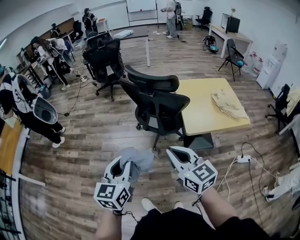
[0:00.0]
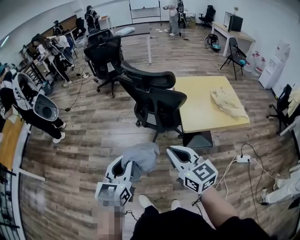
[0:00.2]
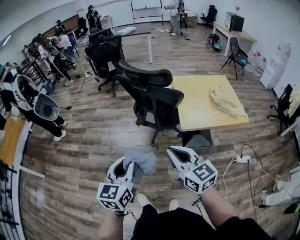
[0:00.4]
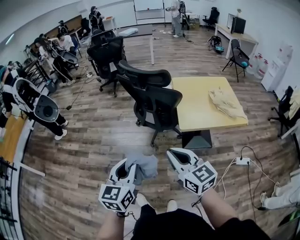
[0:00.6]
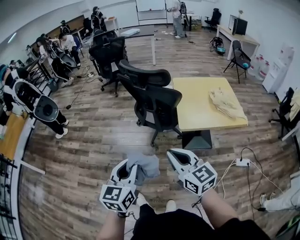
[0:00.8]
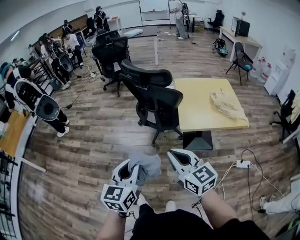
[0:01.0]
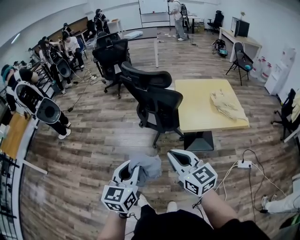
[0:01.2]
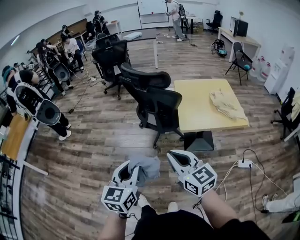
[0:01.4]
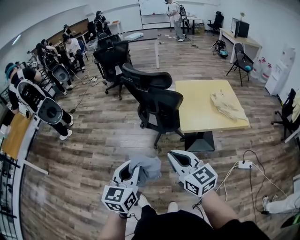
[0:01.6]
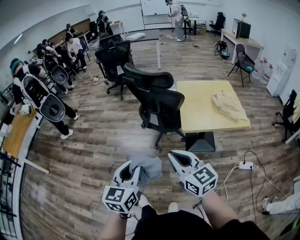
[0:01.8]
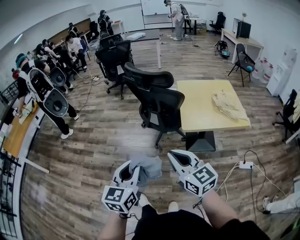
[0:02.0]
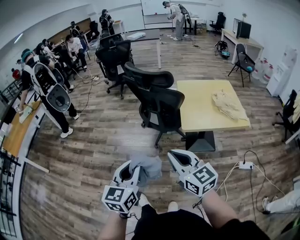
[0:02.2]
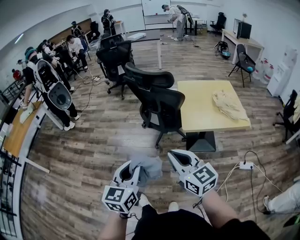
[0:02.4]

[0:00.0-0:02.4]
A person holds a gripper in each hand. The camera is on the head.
0.0 to 1.2 s: Both grippers move backward and to the right, approximately 15 cm.
1.2 to 2.4 s: There are only small adjustments of the grippers.

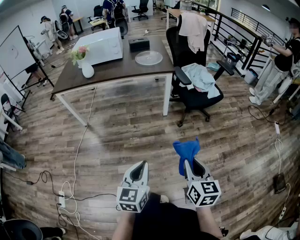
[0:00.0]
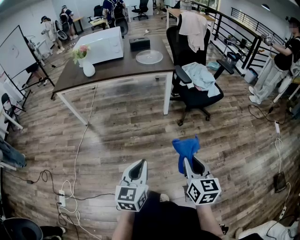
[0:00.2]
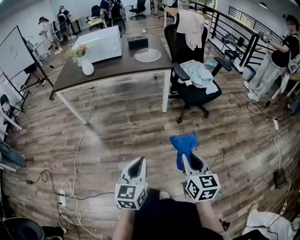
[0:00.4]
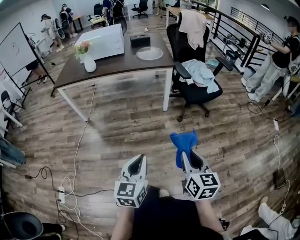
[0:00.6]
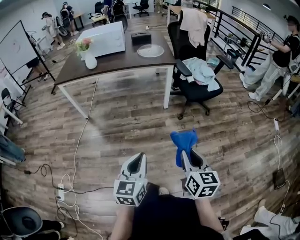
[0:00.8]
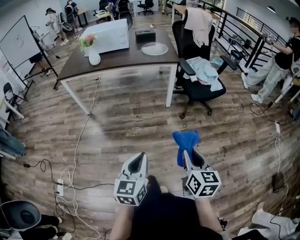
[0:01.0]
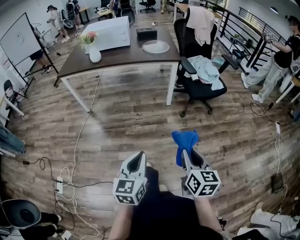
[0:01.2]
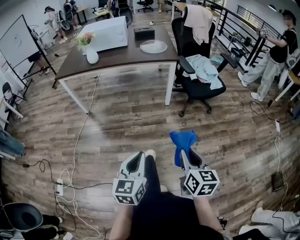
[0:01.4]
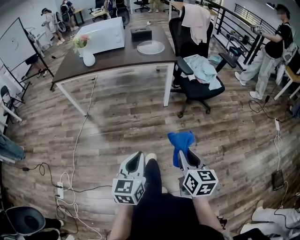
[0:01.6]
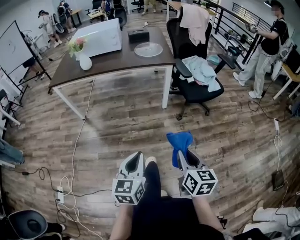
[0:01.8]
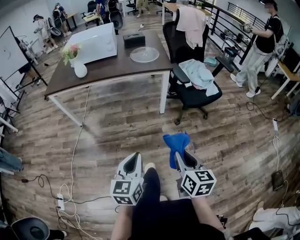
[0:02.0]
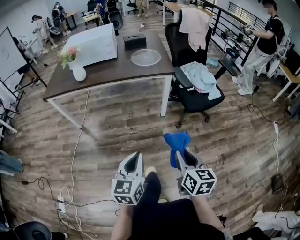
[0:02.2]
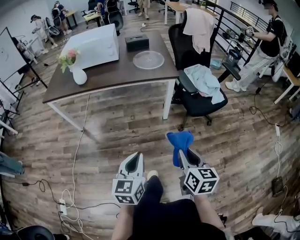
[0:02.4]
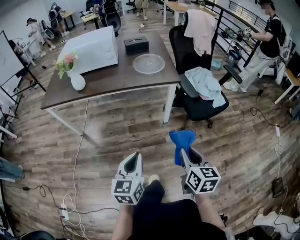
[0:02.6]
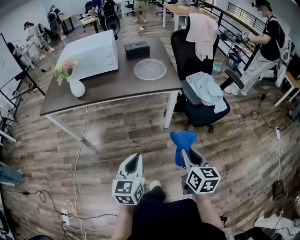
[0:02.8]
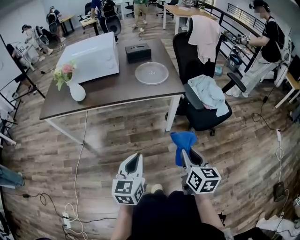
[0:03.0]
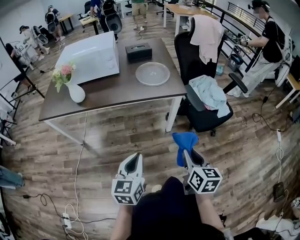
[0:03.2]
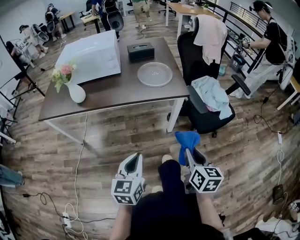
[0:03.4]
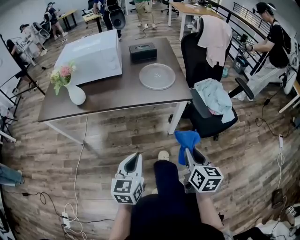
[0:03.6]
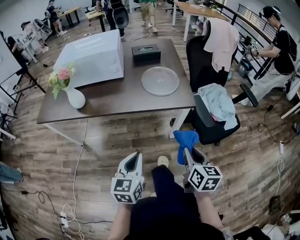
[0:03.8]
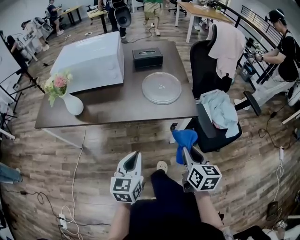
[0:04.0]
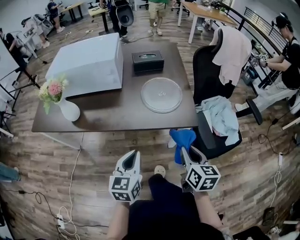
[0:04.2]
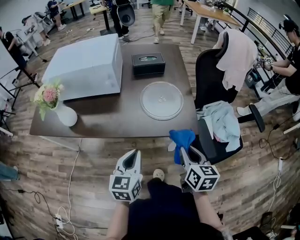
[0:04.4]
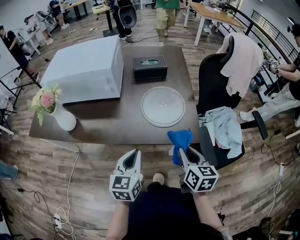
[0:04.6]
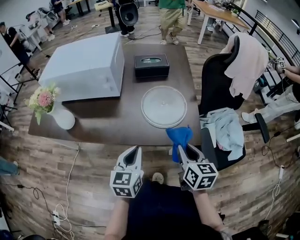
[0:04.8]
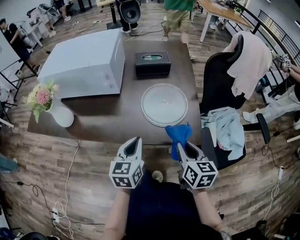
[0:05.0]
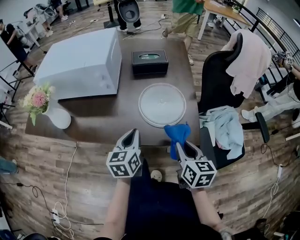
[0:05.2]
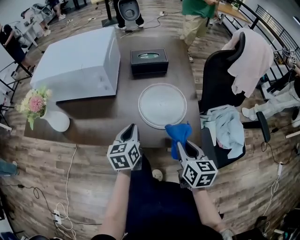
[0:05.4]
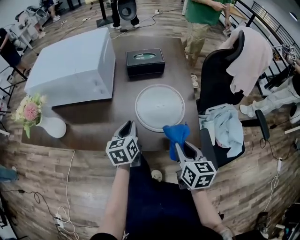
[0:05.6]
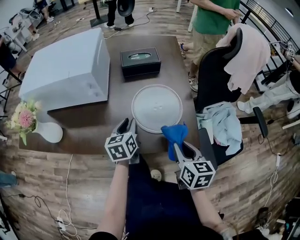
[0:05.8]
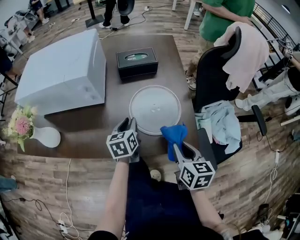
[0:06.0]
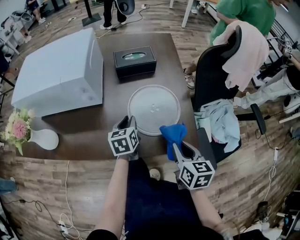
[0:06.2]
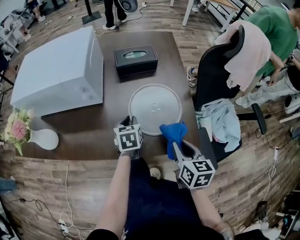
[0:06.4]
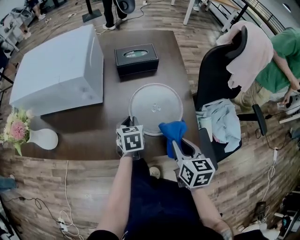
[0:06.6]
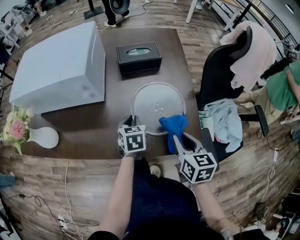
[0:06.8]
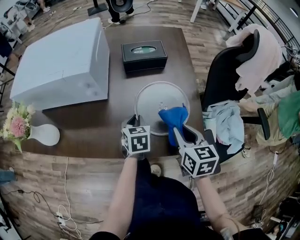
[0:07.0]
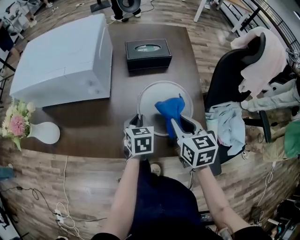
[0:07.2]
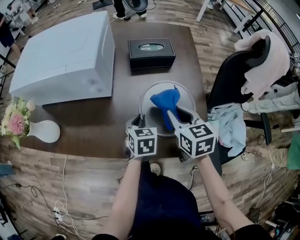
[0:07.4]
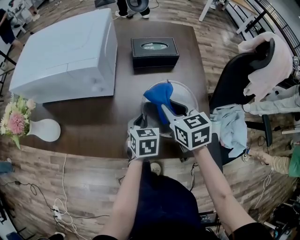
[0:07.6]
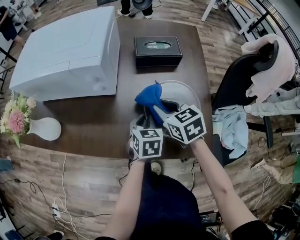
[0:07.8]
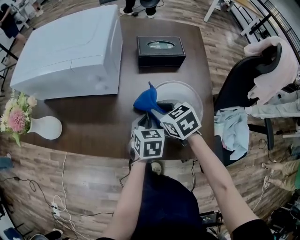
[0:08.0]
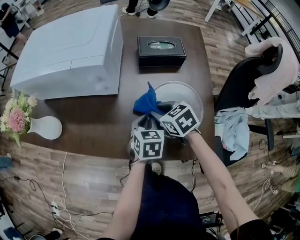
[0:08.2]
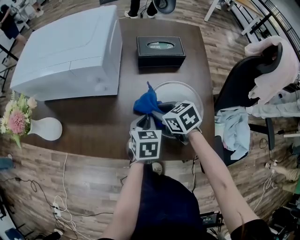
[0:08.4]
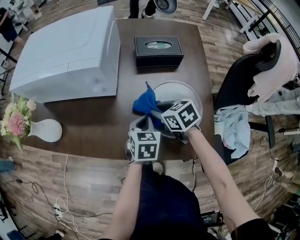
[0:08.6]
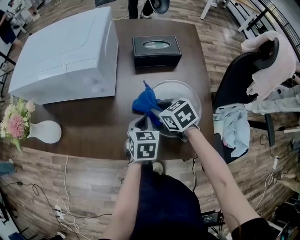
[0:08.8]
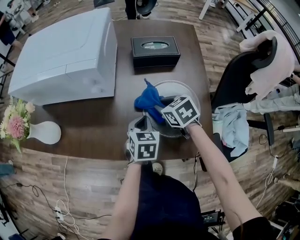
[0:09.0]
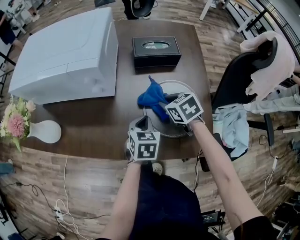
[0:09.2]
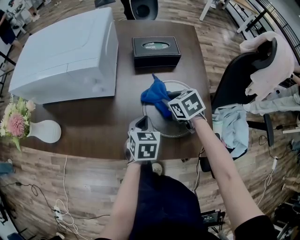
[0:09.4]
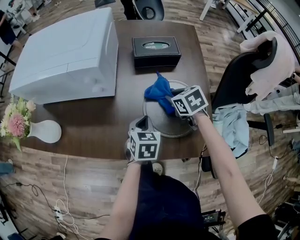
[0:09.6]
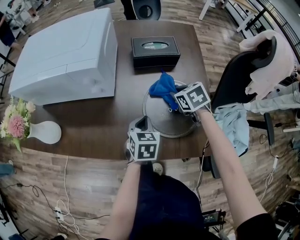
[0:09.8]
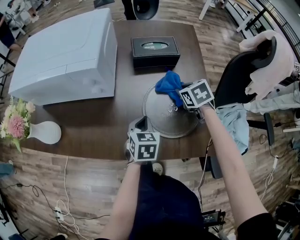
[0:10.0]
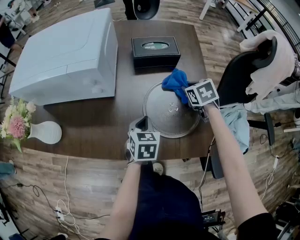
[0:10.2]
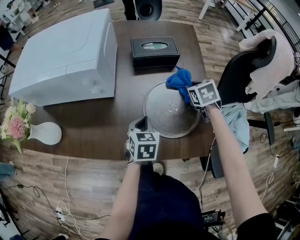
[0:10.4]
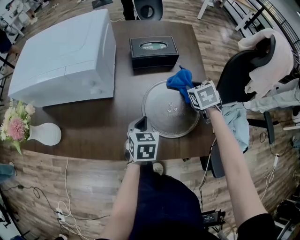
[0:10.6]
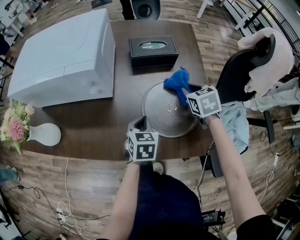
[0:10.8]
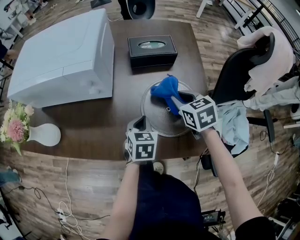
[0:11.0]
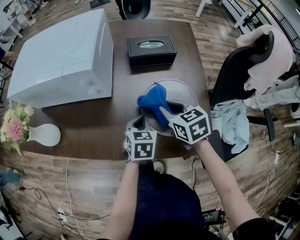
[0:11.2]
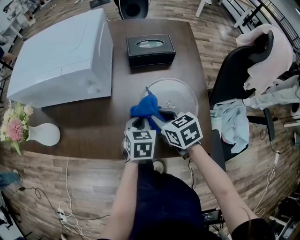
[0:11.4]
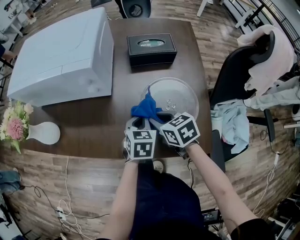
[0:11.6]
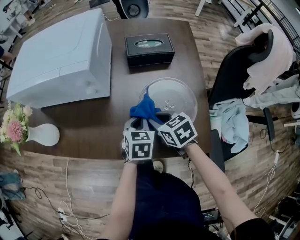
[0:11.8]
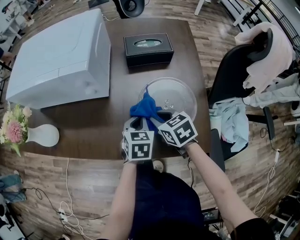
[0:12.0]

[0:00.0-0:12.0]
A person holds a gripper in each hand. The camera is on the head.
0.0 to 1.6 s: The grippers stay close to where they were, moving slightly.
1.6 to 3.0 s: The two grippers go some 35 cm forward.
3.0 to 4.4 s: Both grippers travel together forward, about 35 cm.
4.4 to 6.0 s: The left gripper heads forward and downward, covering roughly 30 cm, and opens. Meanwhile the right gripper moves forward, some 15 cm.
6.0 to 7.6 s: The right gripper is displaced forward and to the left by some 20 cm, and changes its angle by roughly 30 degrees. The left gripper swivels approximately 20 degrees.
7.6 to 9.0 s: The right gripper is displaced downward by approximately 10 cm, and turns by some 20 degrees.
9.0 to 10.4 s: The right gripper is displaced to the right by some 15 cm, and rotates about 20 degrees.
10.4 to 12.0 s: The right gripper shifts roughly 20 cm to the left and backward, and rotates about 20 degrees.

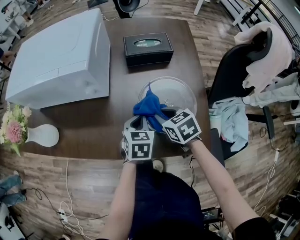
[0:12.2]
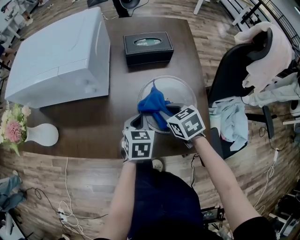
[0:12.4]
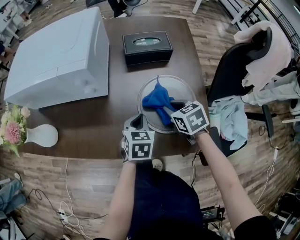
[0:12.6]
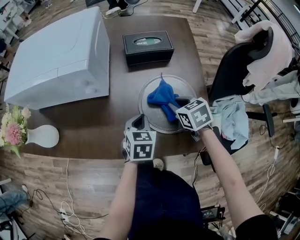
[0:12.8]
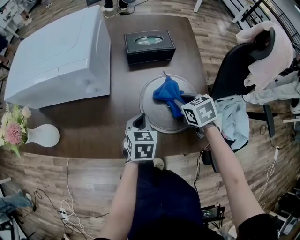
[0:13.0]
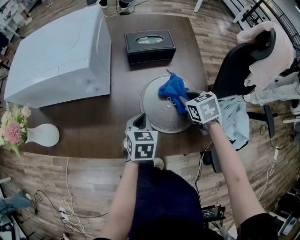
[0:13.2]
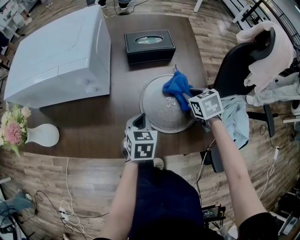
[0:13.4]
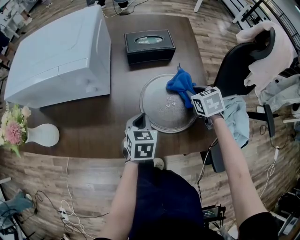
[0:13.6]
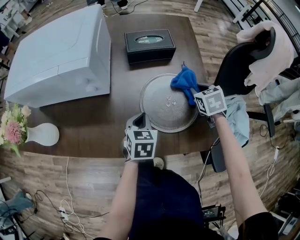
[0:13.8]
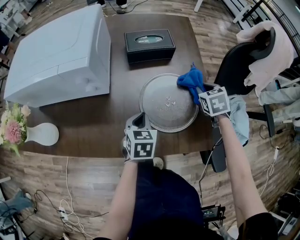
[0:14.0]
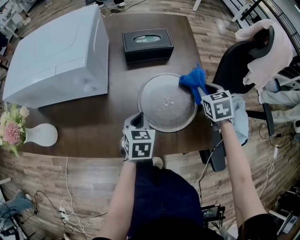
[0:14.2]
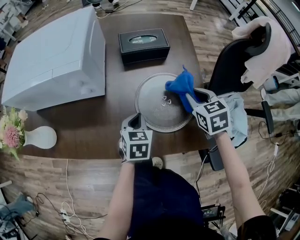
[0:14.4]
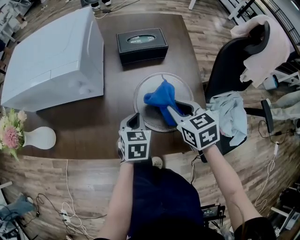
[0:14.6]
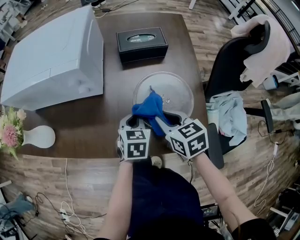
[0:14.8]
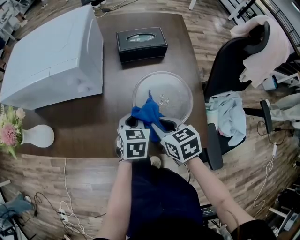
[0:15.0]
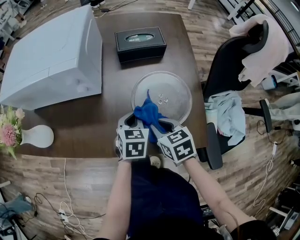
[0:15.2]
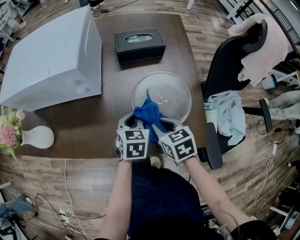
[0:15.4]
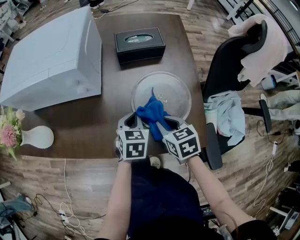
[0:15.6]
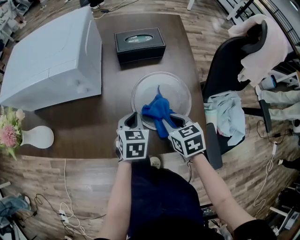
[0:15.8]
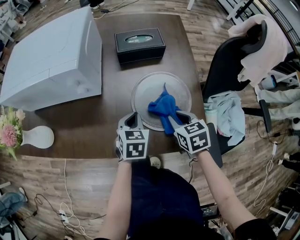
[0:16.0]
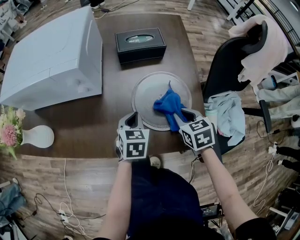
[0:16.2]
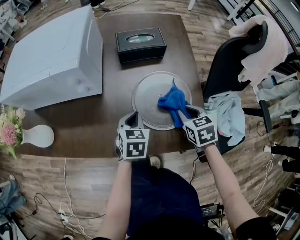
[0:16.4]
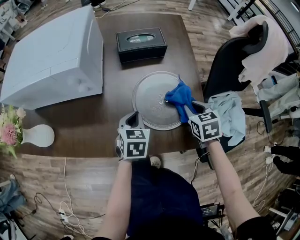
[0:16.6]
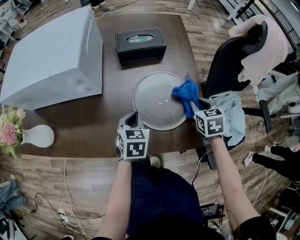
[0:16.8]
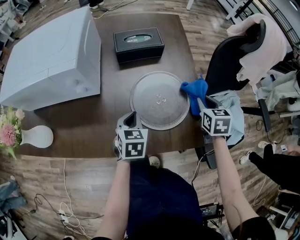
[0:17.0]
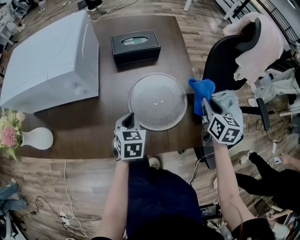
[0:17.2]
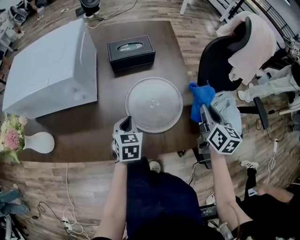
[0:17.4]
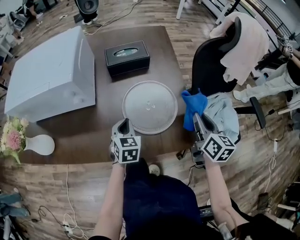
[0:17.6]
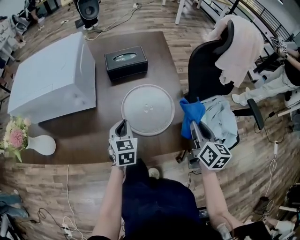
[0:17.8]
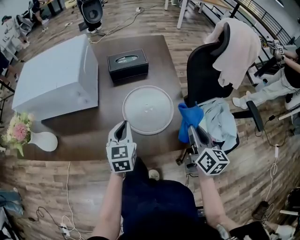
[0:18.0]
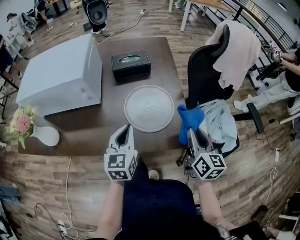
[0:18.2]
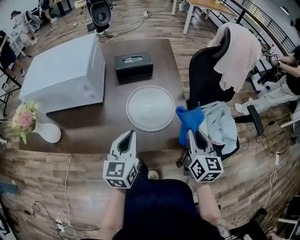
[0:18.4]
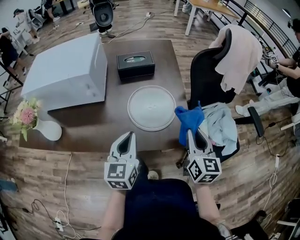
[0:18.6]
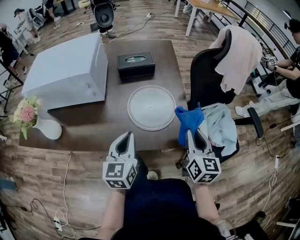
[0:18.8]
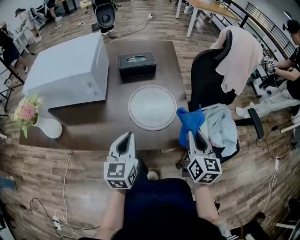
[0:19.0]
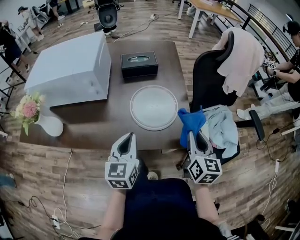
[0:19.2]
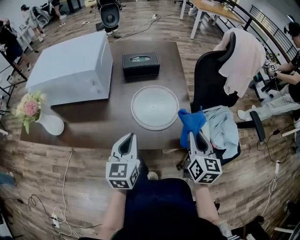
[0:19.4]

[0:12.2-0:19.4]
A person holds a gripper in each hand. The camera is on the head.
12.2 to 13.6 s: The right gripper travels to the right by some 15 cm.
13.6 to 15.0 s: The right gripper is displaced to the left and backward by approximately 20 cm, and turns by some 20 degrees.
15.0 to 16.6 s: The right gripper moves to the right, approximately 15 cm, and turns by some 20 degrees.
16.6 to 18.0 s: The left gripper is displaced upward by approximately 10 cm, and swivels some 20 degrees, while the right gripper heads upward, backward and to the right, covering approximately 15 cm, and tips its fingers upward by some 30 degrees.
18.0 to 19.4 s: The left gripper travels backward by roughly 10 cm.

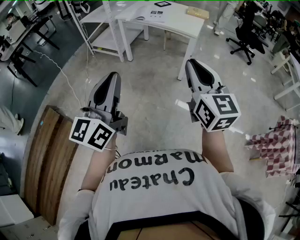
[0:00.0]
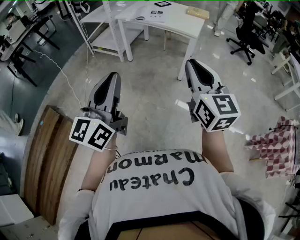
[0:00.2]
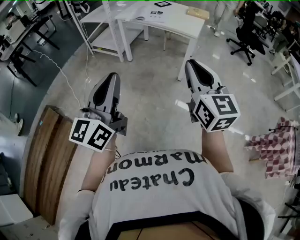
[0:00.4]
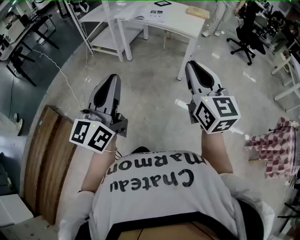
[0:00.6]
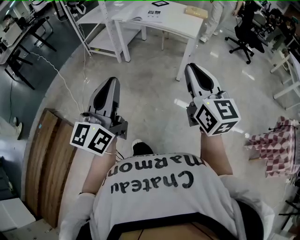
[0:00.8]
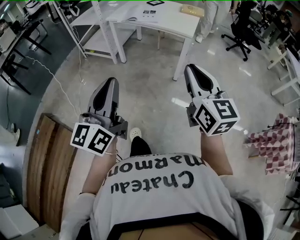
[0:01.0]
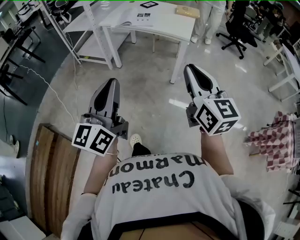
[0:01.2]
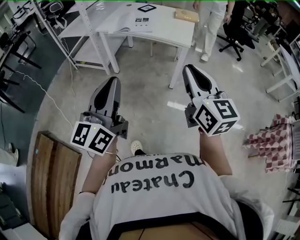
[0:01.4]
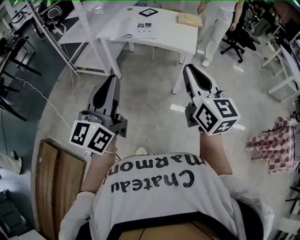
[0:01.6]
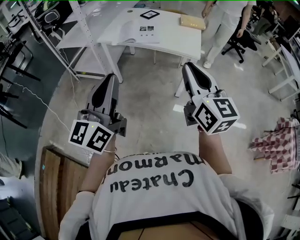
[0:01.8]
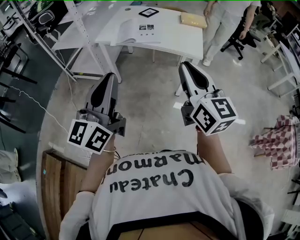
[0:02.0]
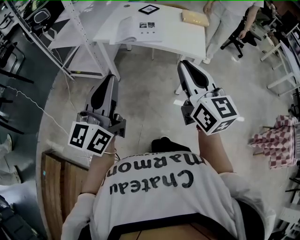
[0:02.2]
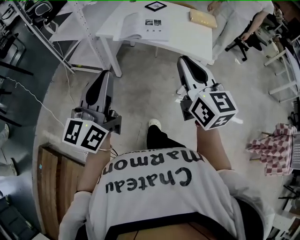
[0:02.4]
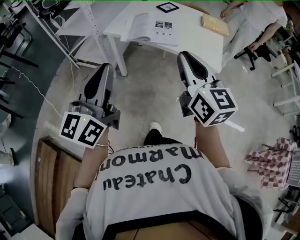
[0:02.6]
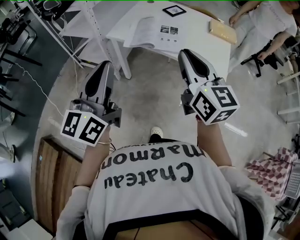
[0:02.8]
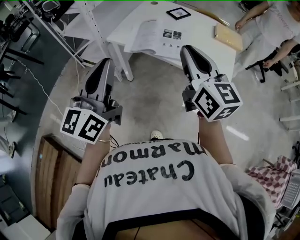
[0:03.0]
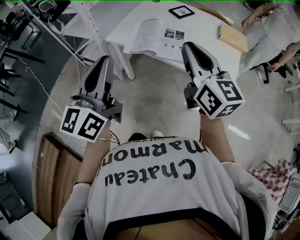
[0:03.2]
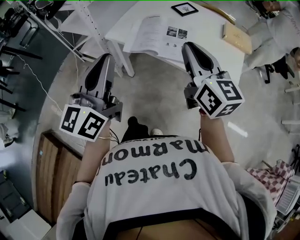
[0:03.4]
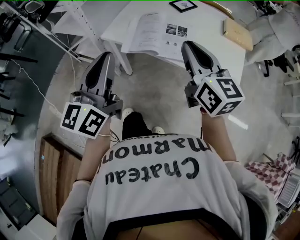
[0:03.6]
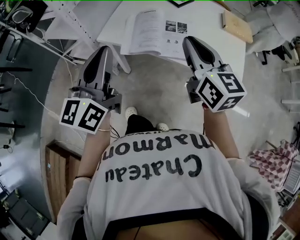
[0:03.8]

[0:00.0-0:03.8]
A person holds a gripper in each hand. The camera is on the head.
0.0 to 1.2 s: The two grippers go about 10 cm forward.
1.2 to 2.6 s: The grippers both shift forward and to the left by roughly 40 cm.
2.6 to 3.8 s: The grippers both shift forward by roughly 25 cm.
